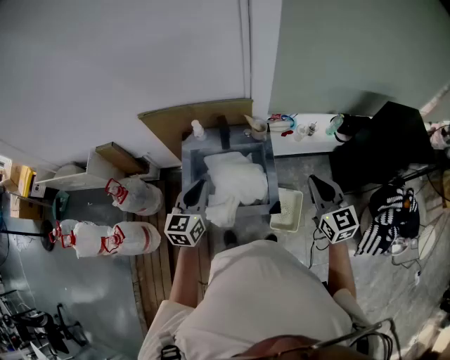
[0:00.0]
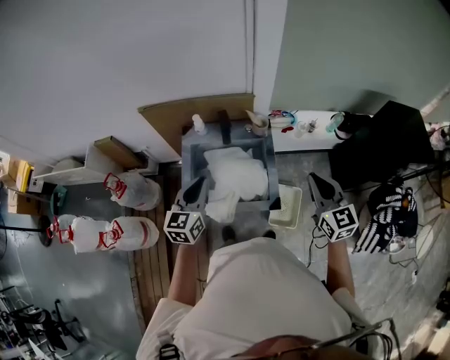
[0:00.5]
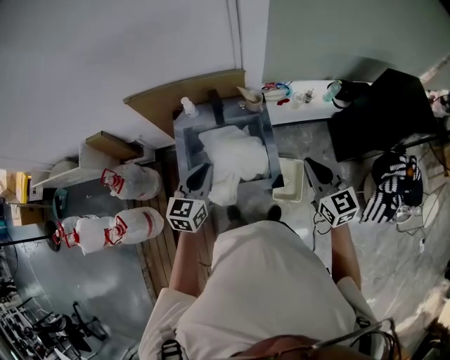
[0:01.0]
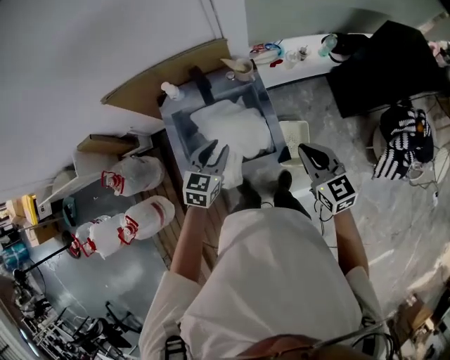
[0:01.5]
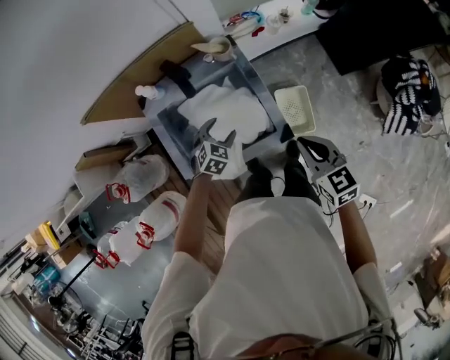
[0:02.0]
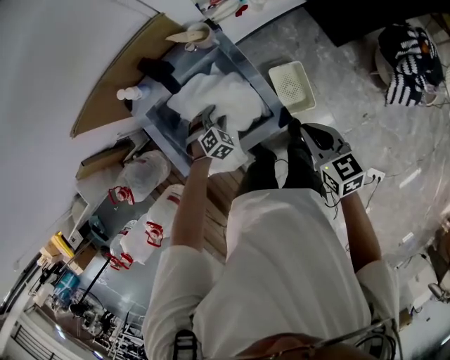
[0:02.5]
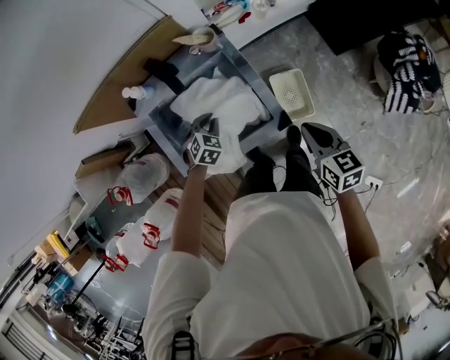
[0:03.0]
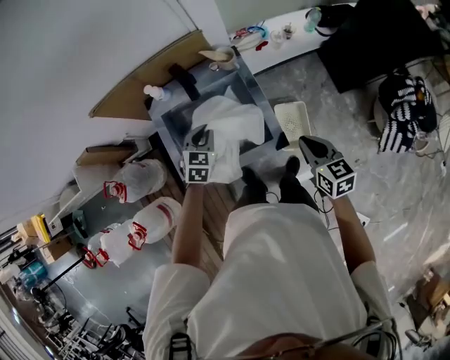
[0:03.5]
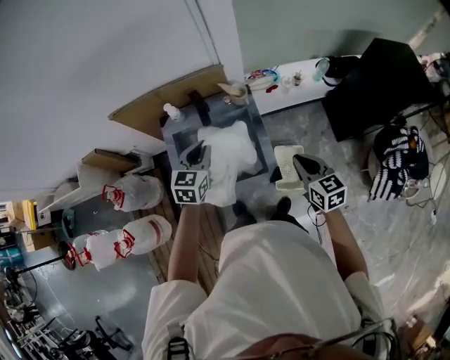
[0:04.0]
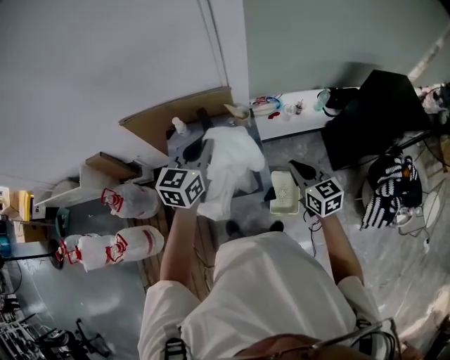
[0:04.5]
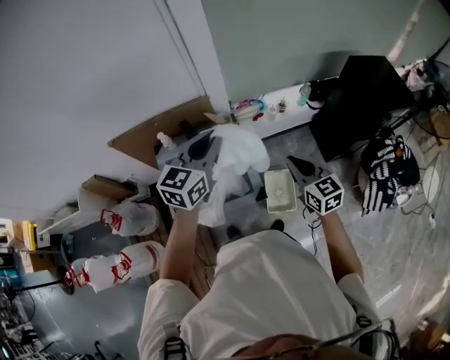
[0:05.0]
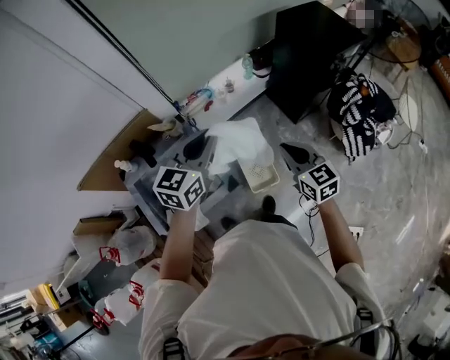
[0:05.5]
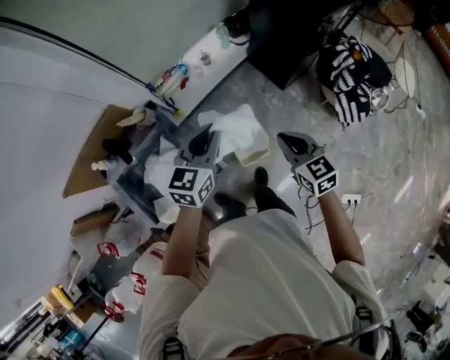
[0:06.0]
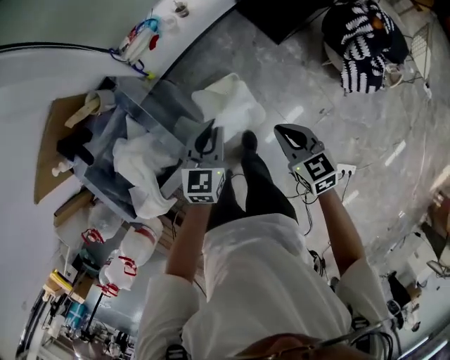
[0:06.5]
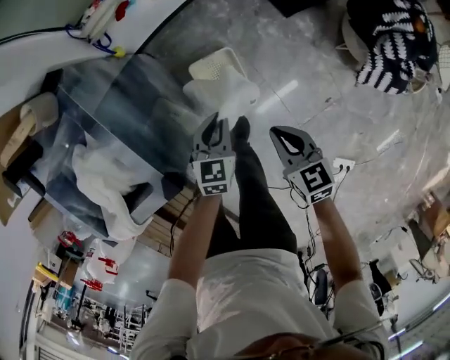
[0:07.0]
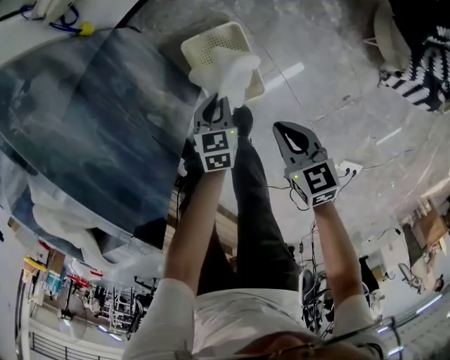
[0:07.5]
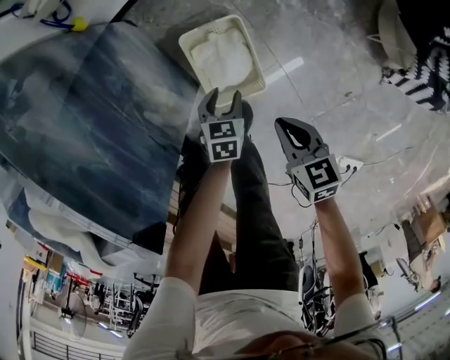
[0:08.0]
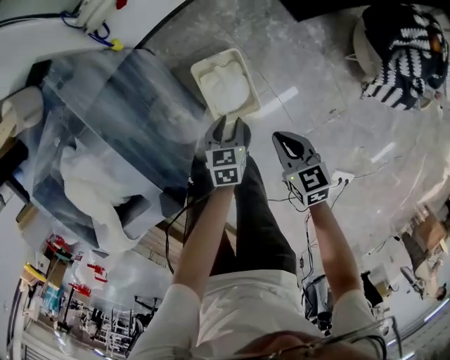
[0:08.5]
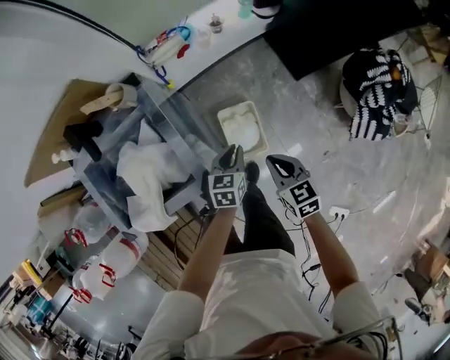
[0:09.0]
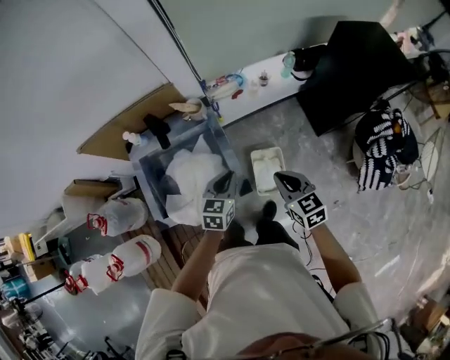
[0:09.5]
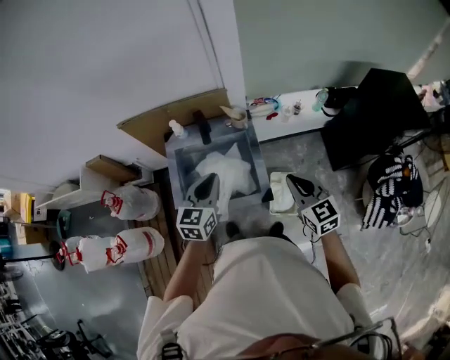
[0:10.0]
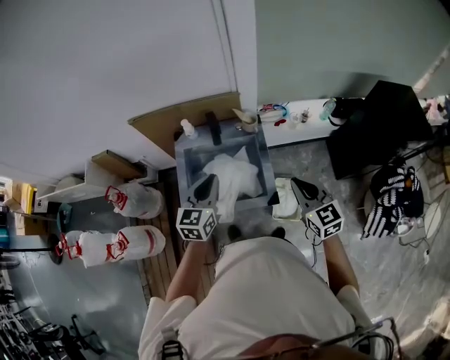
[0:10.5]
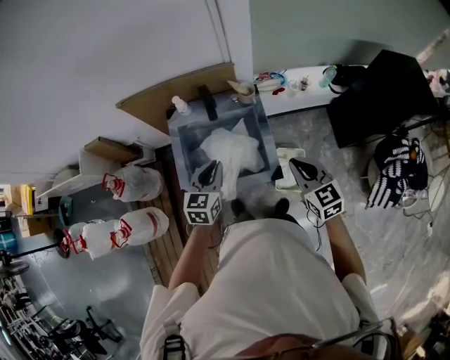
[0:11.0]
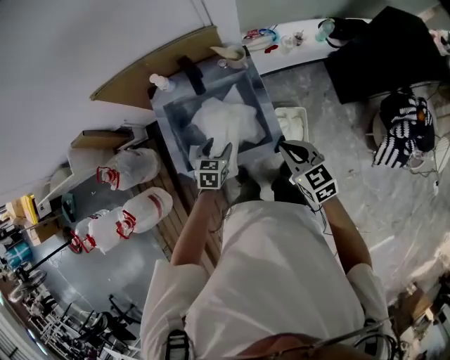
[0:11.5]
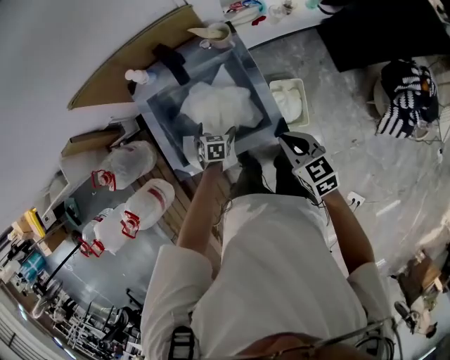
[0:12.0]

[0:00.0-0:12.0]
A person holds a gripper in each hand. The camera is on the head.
0:00.0 to 0:02.0: The left gripper goes roughly 30 cm downward, points its fingers some 40 degrees further downward, and opens its fingers. Meanwhile the right gripper goes roughly 20 cm downward, and rotates about 20 degrees.
0:02.0 to 0:04.0: The left gripper heads upward, covering roughly 25 cm, swivels roughly 40 degrees, and closes its fingers, while the right gripper shifts by approximately 5 cm.
0:04.0 to 0:06.0: The right gripper travels upward and back again, roughly 10 cm each way, and turns by some 20 degrees. The left gripper travels upward and back again, some 20 cm each way, and swivels some 30 degrees.
0:06.0 to 0:08.0: The two grippers go approximately 70 cm downward. The right gripper rotates roughly 30 degrees. Meanwhile the left gripper tilts its fingers approximately 40 degrees downward, and opens.
0:08.0 to 0:10.0: The left gripper is displaced upward and to the left by about 90 cm, angles its fingers upward, by about 40 degrees, and closes its fingers; the right gripper is displaced upward by roughly 70 cm, and rotates about 50 degrees.
0:10.0 to 0:12.0: The right gripper travels downward by about 20 cm, and turns by about 20 degrees, while the left gripper is displaced downward by roughly 40 cm, tilts its fingers roughly 40 degrees downward, and opens its fingers.

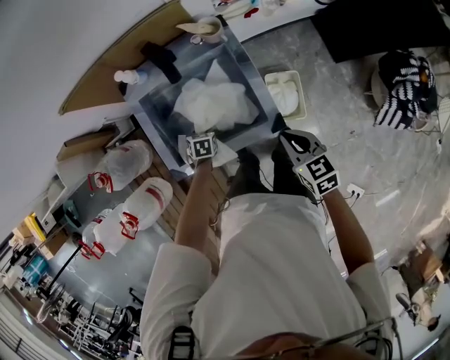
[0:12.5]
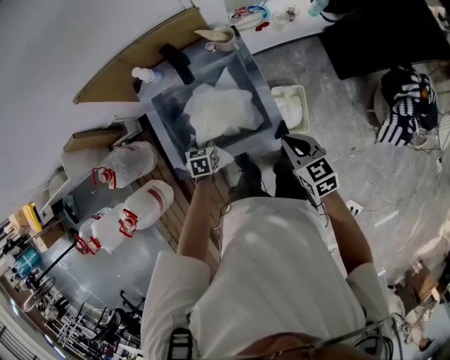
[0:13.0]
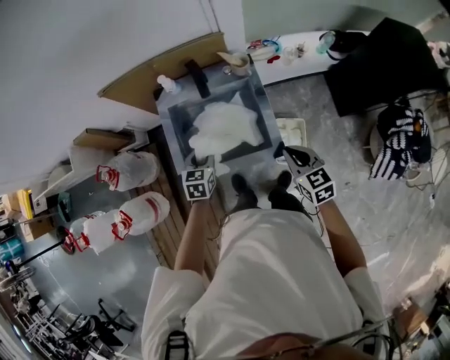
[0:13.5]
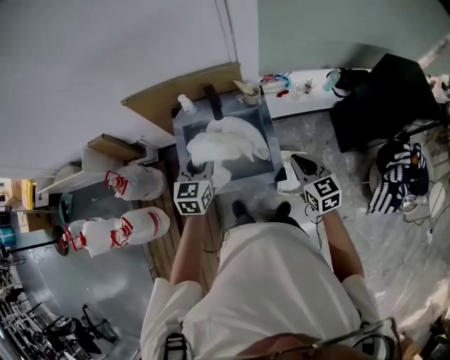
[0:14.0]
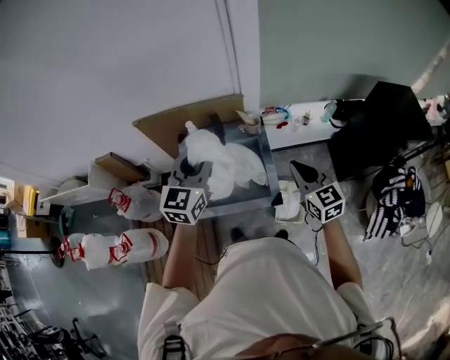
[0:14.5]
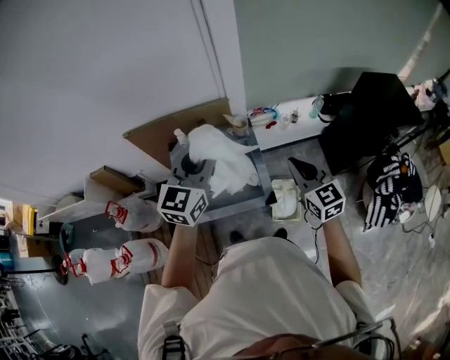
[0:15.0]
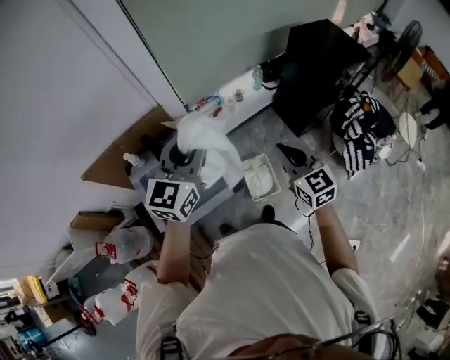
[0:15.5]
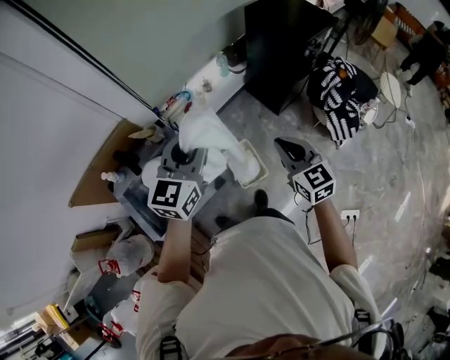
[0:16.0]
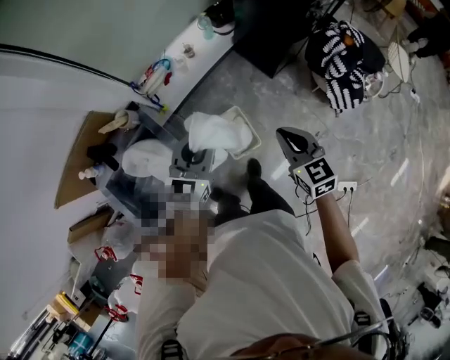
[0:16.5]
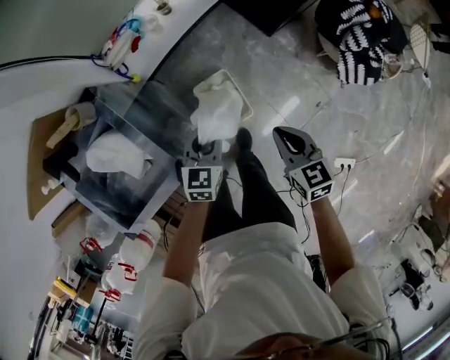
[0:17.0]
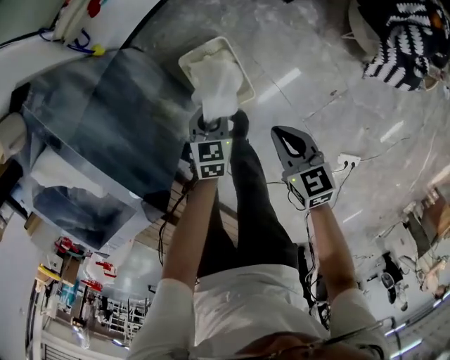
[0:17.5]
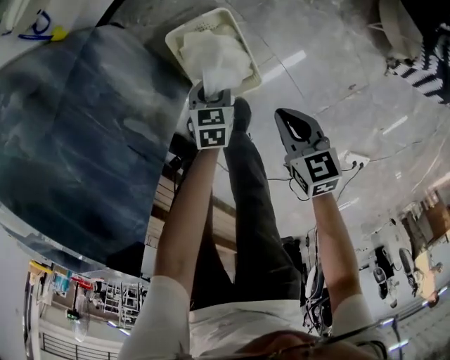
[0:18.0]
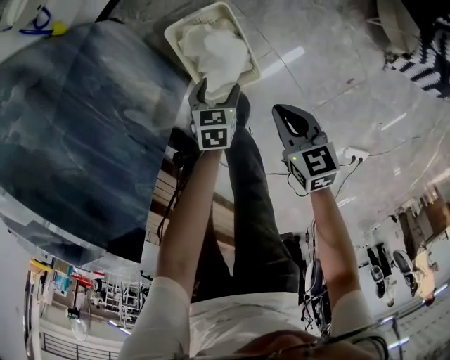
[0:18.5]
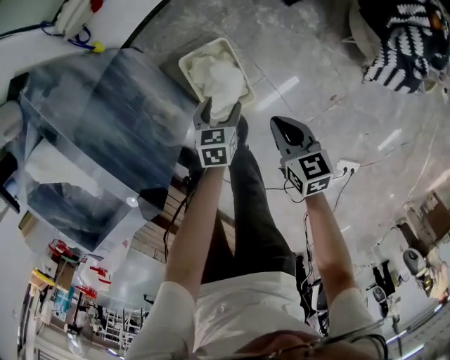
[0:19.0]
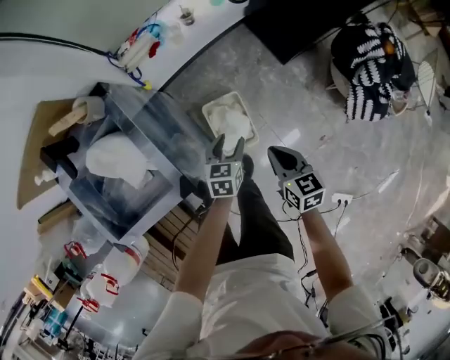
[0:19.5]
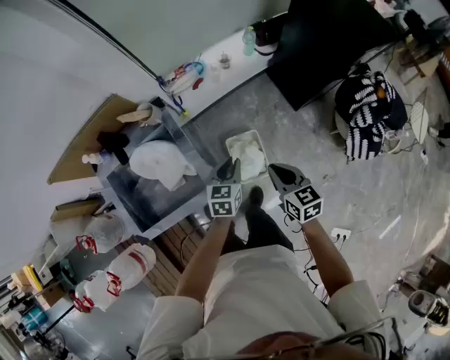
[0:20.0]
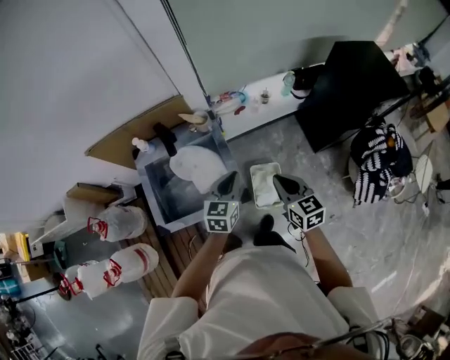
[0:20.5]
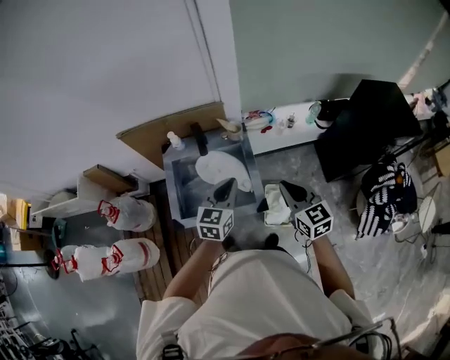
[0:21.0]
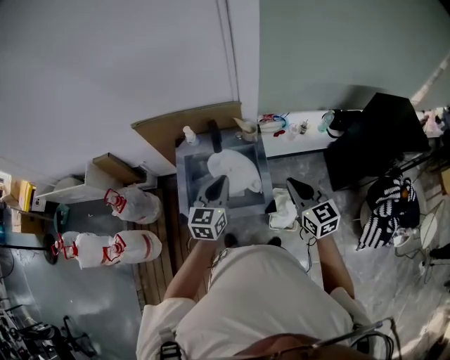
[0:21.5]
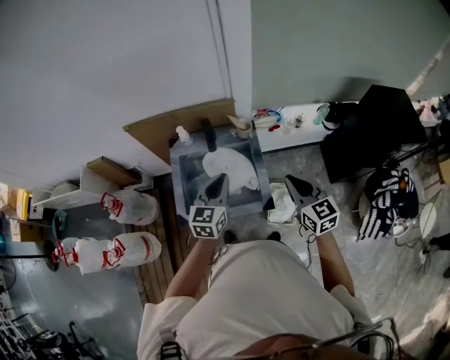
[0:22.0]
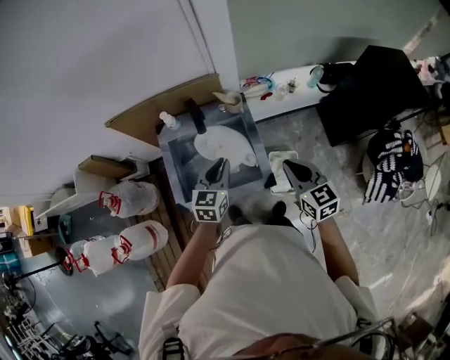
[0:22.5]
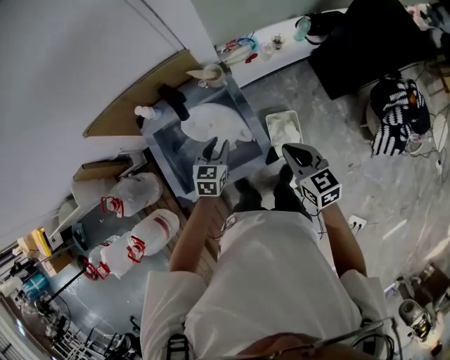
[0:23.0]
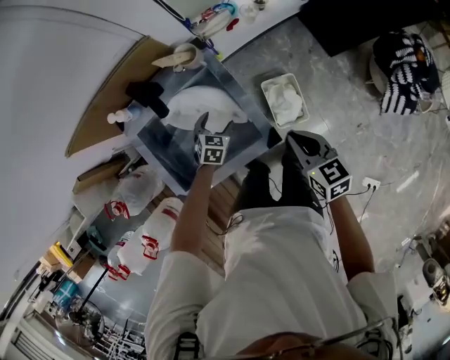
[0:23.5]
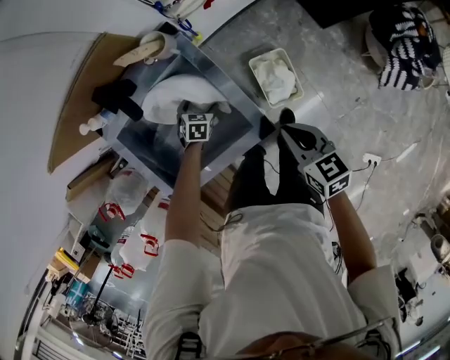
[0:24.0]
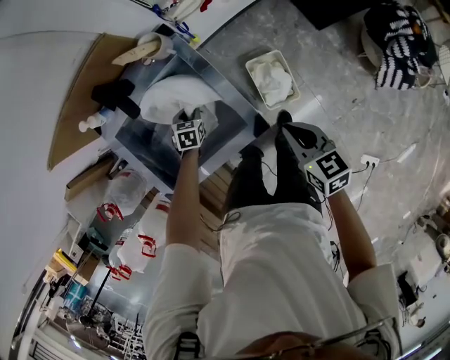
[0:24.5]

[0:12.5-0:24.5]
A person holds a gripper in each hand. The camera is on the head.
0:12.5 to 0:14.5: The right gripper heads upward, covering approximately 25 cm, and swivels roughly 30 degrees, while the left gripper goes about 60 cm upward, and angles its fingers upward, by roughly 70 degrees.
0:14.5 to 0:16.5: The right gripper ends up about 35 cm from where it was, and rotates roughly 40 degrees, while the left gripper ends up roughly 50 cm from where it was, and changes its angle by some 40 degrees.
0:16.5 to 0:18.5: The two grippers go approximately 70 cm downward. The right gripper swivels some 30 degrees; the left gripper angles its fingers downward, by about 40 degrees, and opens its fingers.
0:18.5 to 0:20.5: The two grippers go about 70 cm upward. The right gripper rotates about 30 degrees, while the left gripper tilts its fingers approximately 40 degrees upward, and closes up.
0:20.5 to 0:22.5: The left gripper moves to the left, about 15 cm. Meanwhile the right gripper goes approximately 10 cm to the left.
0:22.5 to 0:24.5: The left gripper heads downward, covering about 40 cm, angles its fingers downward, by some 40 degrees, and opens and closes again, while the right gripper travels downward by about 20 cm, and changes its angle by approximately 30 degrees.

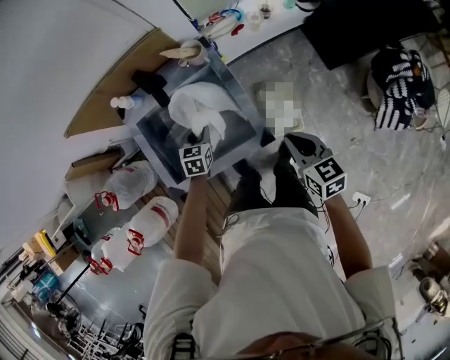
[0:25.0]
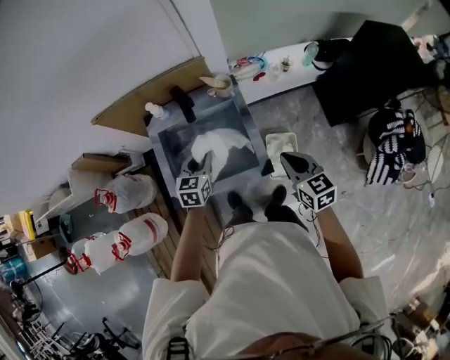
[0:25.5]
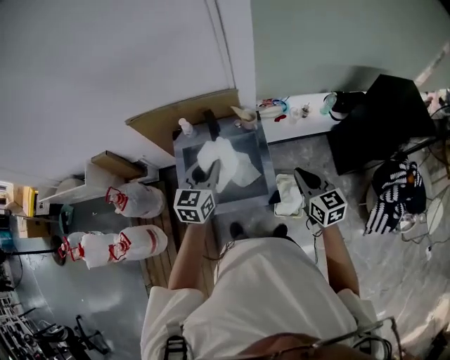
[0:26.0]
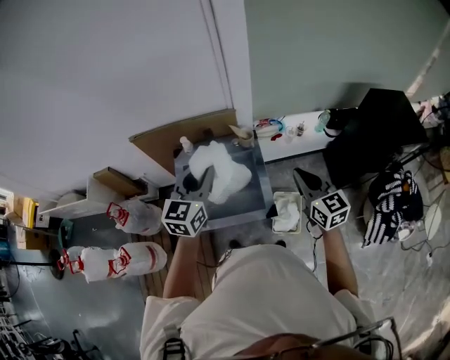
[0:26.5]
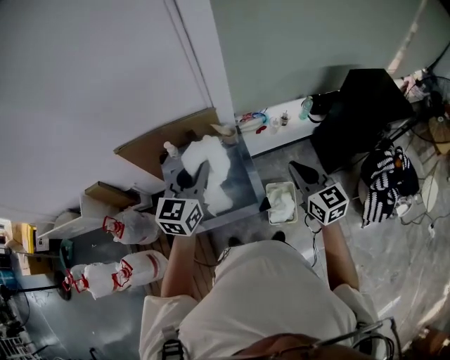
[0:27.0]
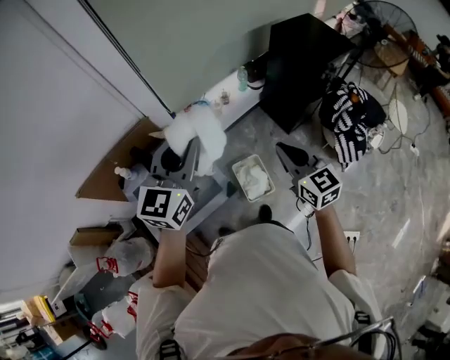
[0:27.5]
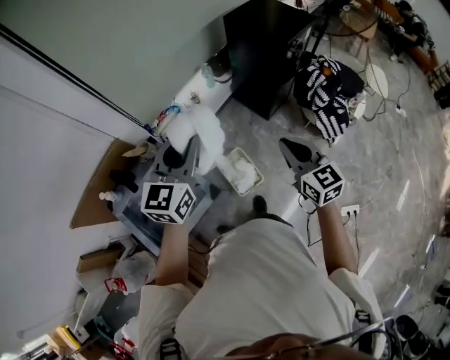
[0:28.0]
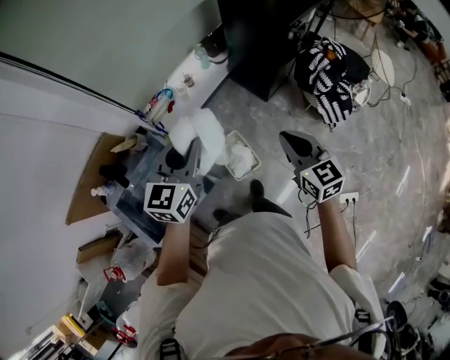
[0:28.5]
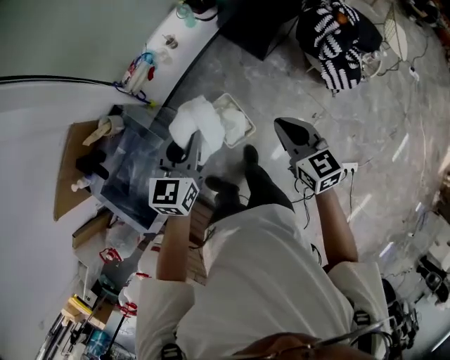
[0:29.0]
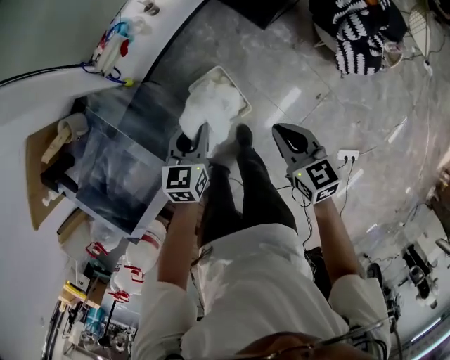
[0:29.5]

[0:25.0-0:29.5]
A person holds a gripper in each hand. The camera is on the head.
0:25.0 to 0:27.0: The left gripper is displaced upward by approximately 50 cm, and tilts its fingers some 40 degrees upward. Meanwhile the right gripper moves upward, about 25 cm, and swivels roughly 30 degrees.
0:27.0 to 0:29.5: Both grippers travel together downward, about 40 cm. The right gripper rotates approximately 40 degrees, while the left gripper turns by some 40 degrees.
